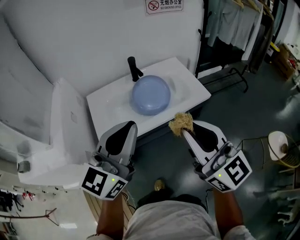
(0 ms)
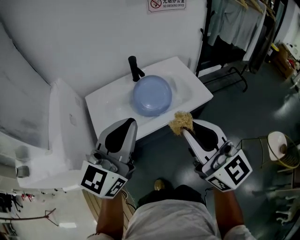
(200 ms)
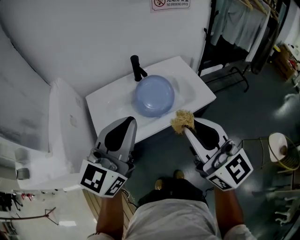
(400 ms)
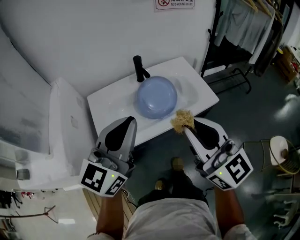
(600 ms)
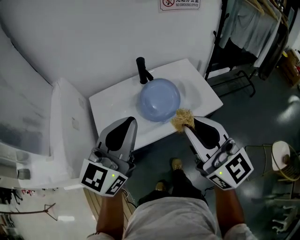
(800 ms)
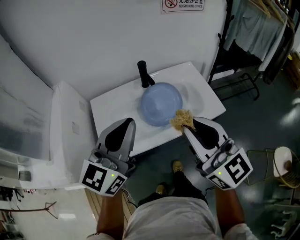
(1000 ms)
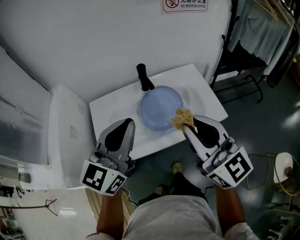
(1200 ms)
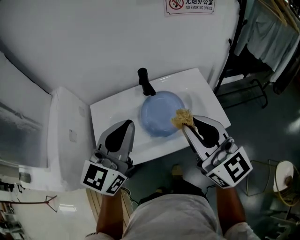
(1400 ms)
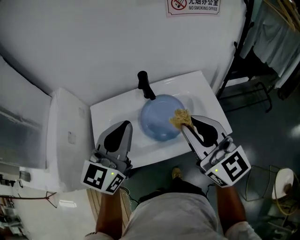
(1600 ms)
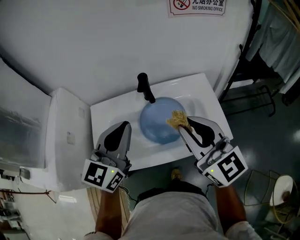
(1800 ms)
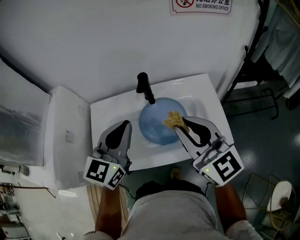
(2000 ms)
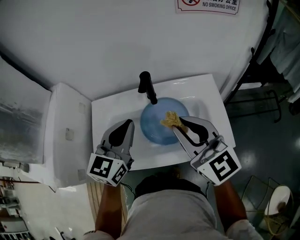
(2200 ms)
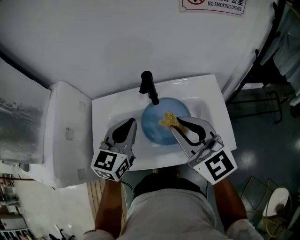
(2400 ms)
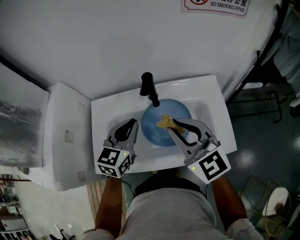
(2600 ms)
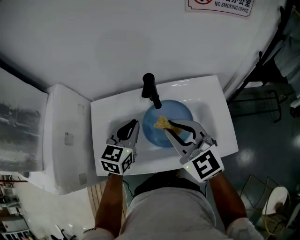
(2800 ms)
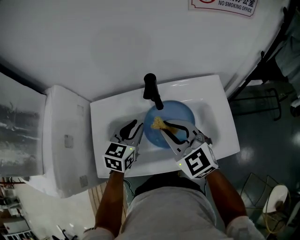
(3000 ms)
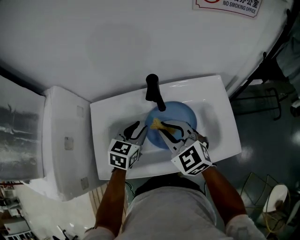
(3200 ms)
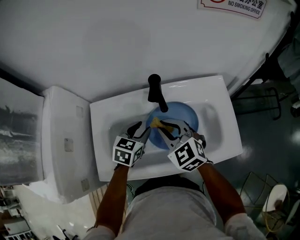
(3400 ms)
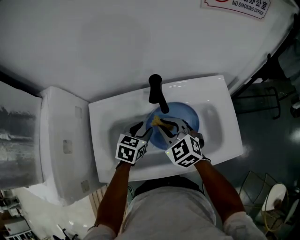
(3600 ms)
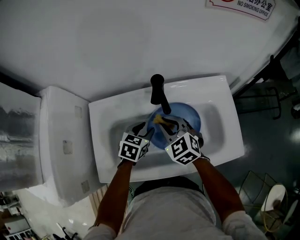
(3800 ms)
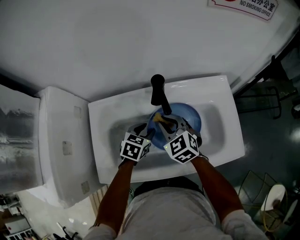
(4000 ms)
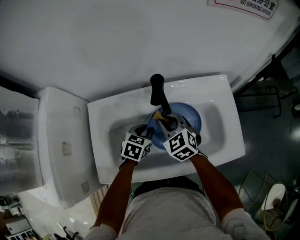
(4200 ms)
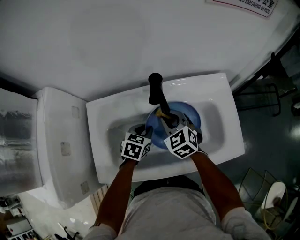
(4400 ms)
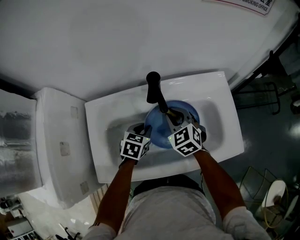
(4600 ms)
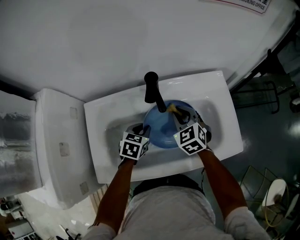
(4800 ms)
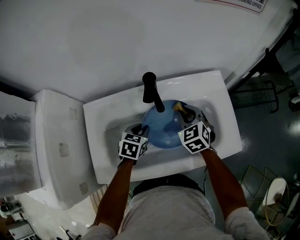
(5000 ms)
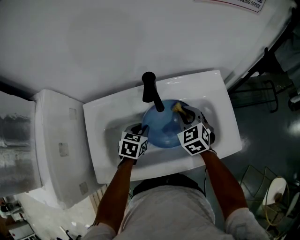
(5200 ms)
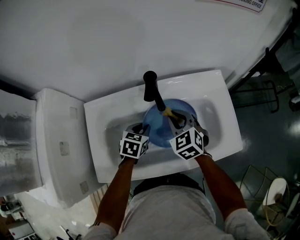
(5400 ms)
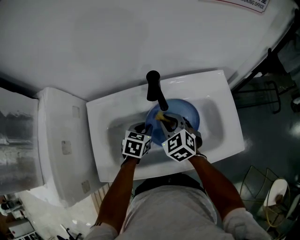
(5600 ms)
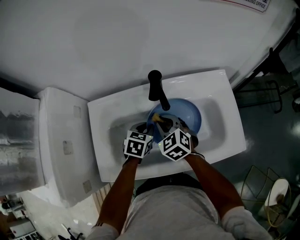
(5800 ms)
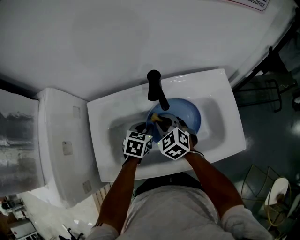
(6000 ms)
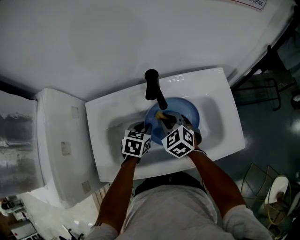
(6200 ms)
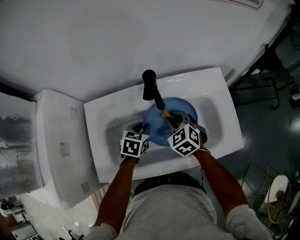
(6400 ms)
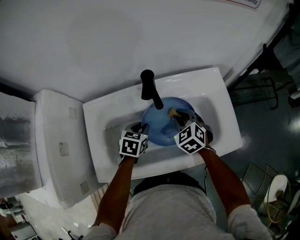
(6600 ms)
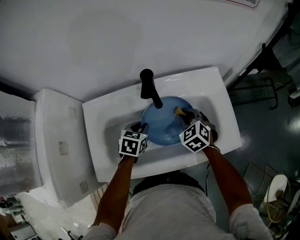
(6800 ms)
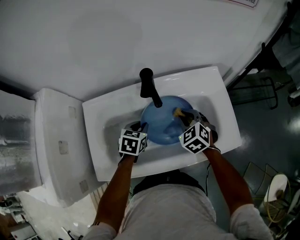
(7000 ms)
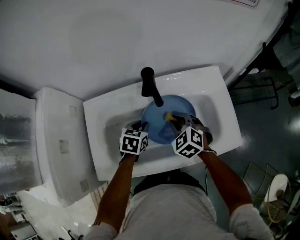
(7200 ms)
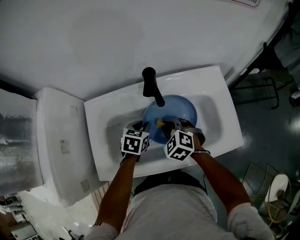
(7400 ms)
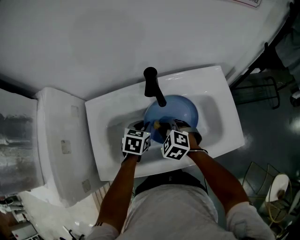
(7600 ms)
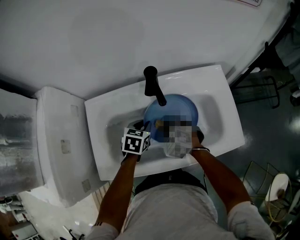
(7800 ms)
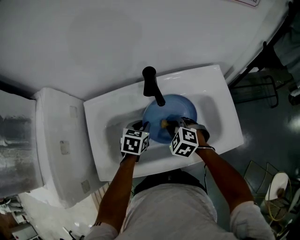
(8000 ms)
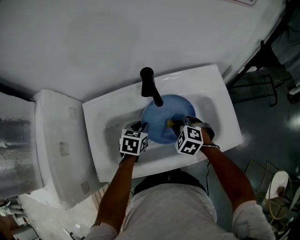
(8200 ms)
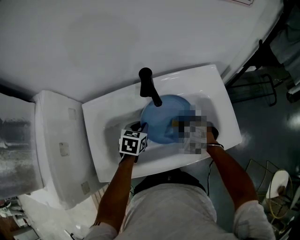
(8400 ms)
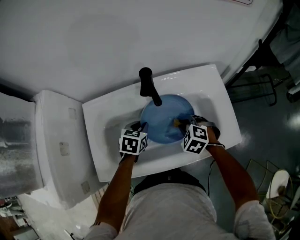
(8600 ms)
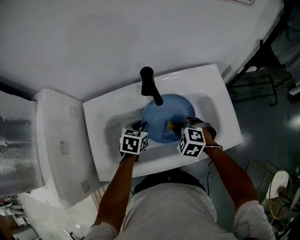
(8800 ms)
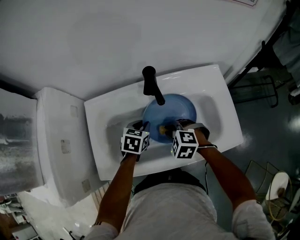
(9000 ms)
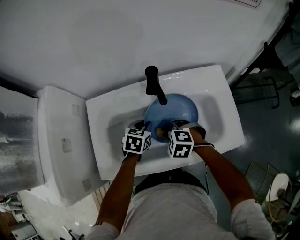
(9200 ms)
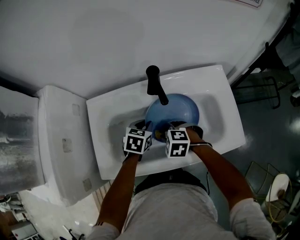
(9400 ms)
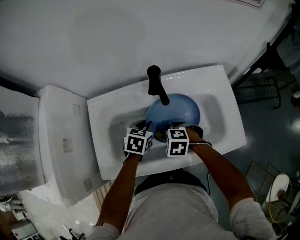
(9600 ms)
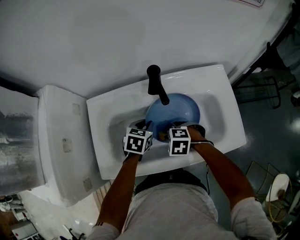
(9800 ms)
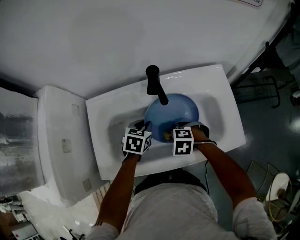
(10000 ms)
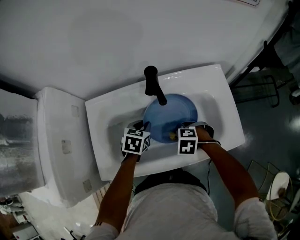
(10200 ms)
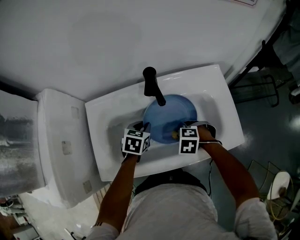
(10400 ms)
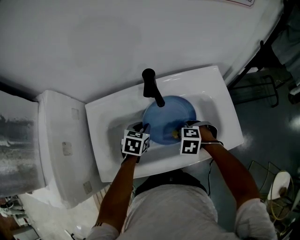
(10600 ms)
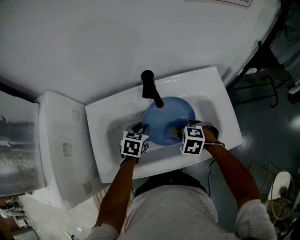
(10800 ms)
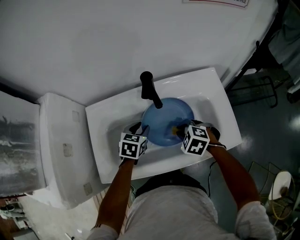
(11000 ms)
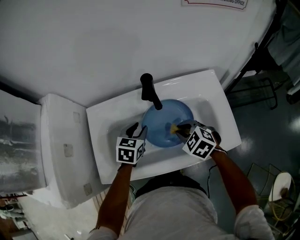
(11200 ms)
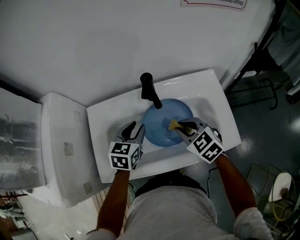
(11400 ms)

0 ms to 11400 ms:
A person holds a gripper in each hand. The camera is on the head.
0 ms to 1400 ms: The two grippers go roughly 20 cm forward.
1400 ms to 2800 ms: The left gripper travels downward and forward by about 20 cm, and swivels approximately 30 degrees. Meanwhile the right gripper is displaced forward and downward by approximately 15 cm, and changes its angle by roughly 20 degrees.
2800 ms to 4200 ms: The right gripper heads downward and forward, covering some 20 cm, and turns by about 20 degrees. The left gripper heads downward, covering roughly 15 cm, rotates some 30 degrees, and opens.
4200 ms to 5600 ms: The right gripper goes to the right and returns, roughly 10 cm each way.
5600 ms to 7200 ms: The right gripper heads to the right, covering roughly 5 cm.
7200 ms to 8600 ms: The right gripper reaches approximately 5 cm to the left, then returns.
8600 ms to 10000 ms: The right gripper heads to the left, covering some 10 cm, and swivels roughly 20 degrees.
10000 ms to 11400 ms: The grippers both shift upward by about 15 cm. The right gripper tips its fingers upward by about 30 degrees.

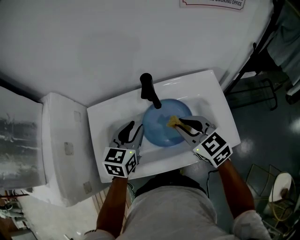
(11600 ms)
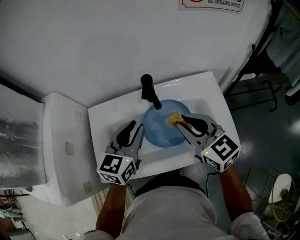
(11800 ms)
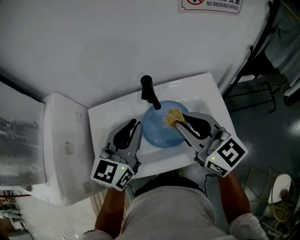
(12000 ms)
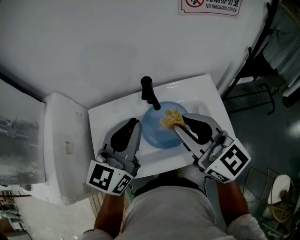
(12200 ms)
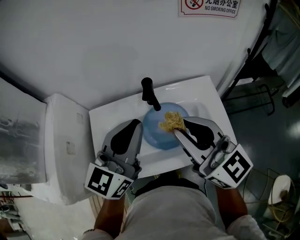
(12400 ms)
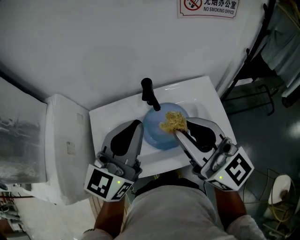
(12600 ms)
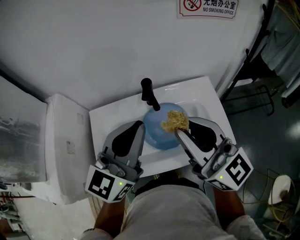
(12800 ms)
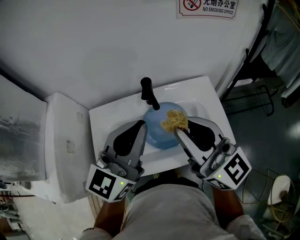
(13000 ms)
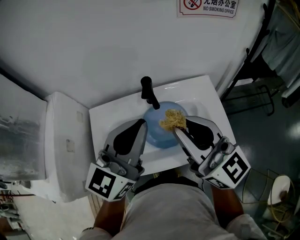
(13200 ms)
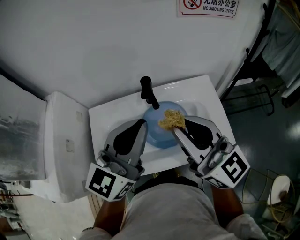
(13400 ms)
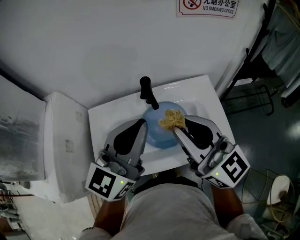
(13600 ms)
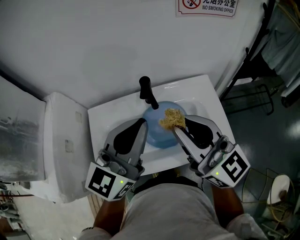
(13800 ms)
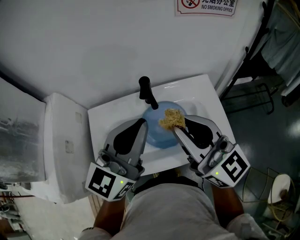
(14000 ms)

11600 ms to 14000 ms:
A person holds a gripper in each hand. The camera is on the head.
11600 ms to 12800 ms: The two grippers go about 20 cm upward. The left gripper tips its fingers upward by some 30 degrees, and closes up. The right gripper angles its fingers upward, by approximately 40 degrees.
12800 ms to 14000 ms: The grippers make only small movements.

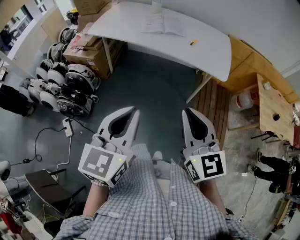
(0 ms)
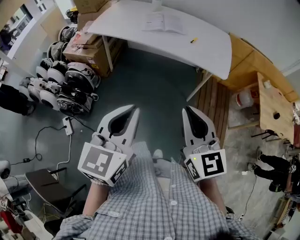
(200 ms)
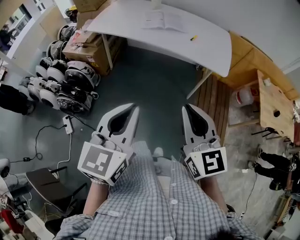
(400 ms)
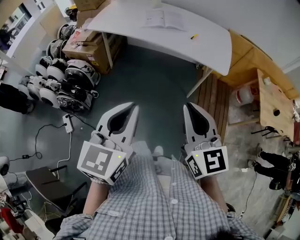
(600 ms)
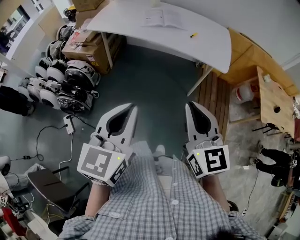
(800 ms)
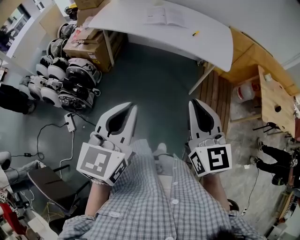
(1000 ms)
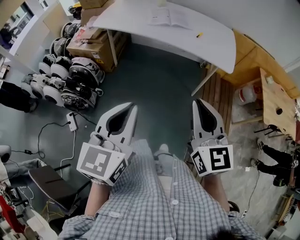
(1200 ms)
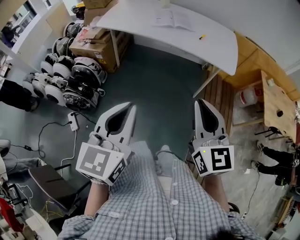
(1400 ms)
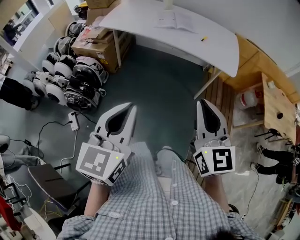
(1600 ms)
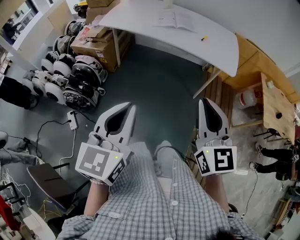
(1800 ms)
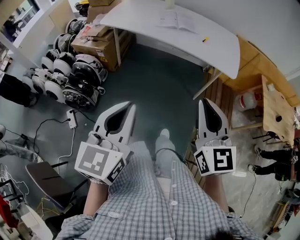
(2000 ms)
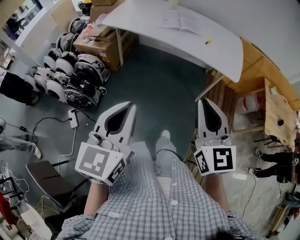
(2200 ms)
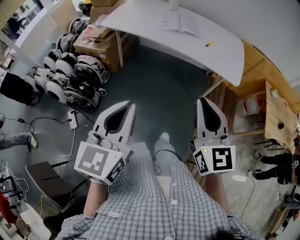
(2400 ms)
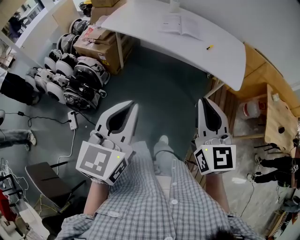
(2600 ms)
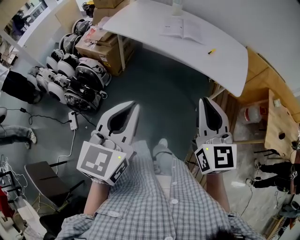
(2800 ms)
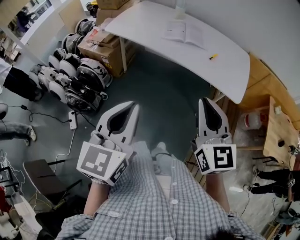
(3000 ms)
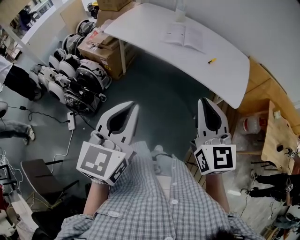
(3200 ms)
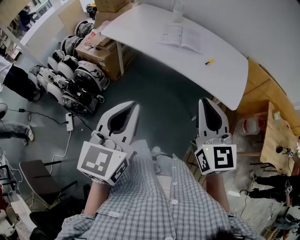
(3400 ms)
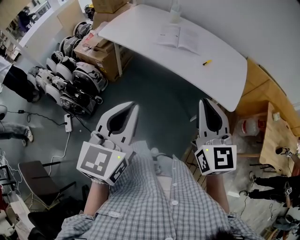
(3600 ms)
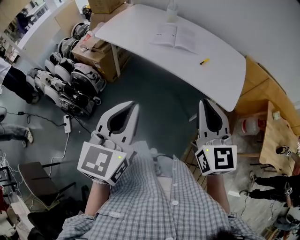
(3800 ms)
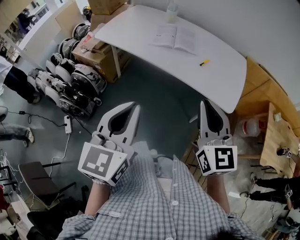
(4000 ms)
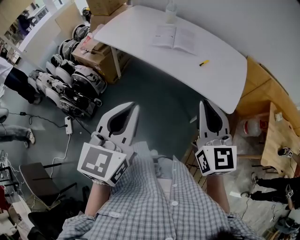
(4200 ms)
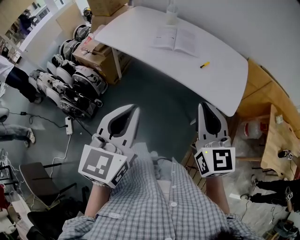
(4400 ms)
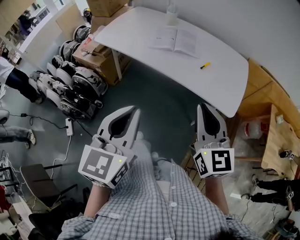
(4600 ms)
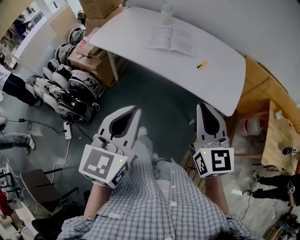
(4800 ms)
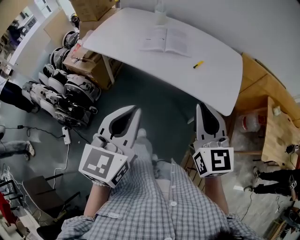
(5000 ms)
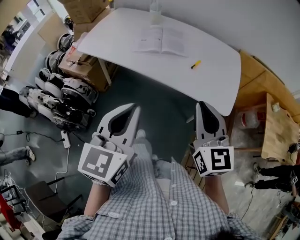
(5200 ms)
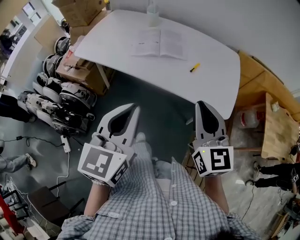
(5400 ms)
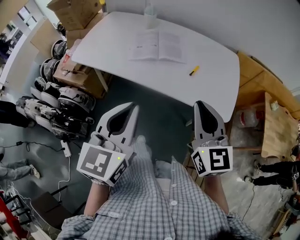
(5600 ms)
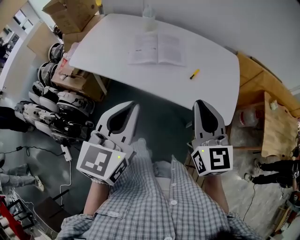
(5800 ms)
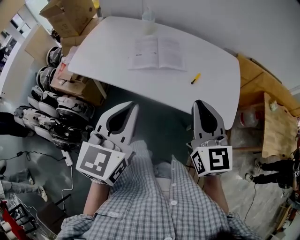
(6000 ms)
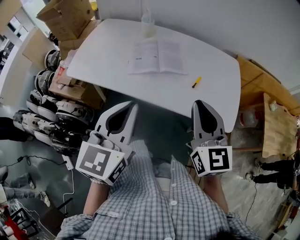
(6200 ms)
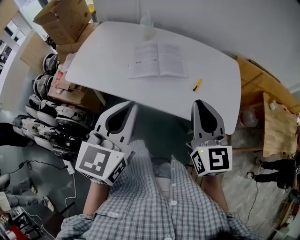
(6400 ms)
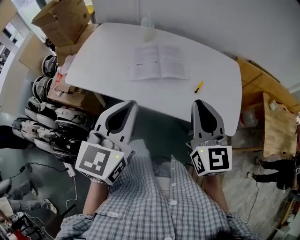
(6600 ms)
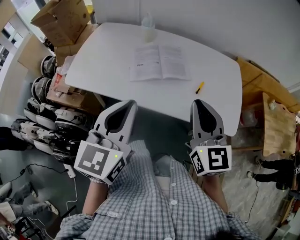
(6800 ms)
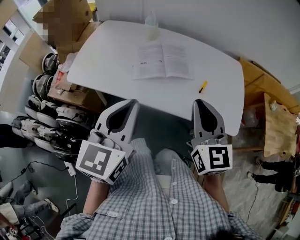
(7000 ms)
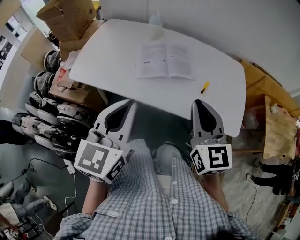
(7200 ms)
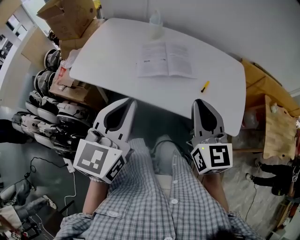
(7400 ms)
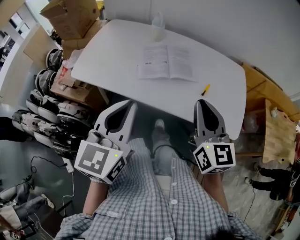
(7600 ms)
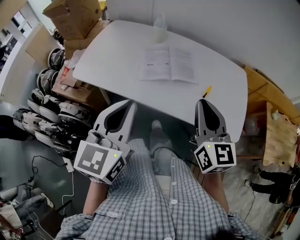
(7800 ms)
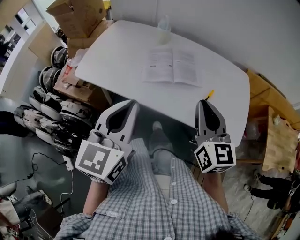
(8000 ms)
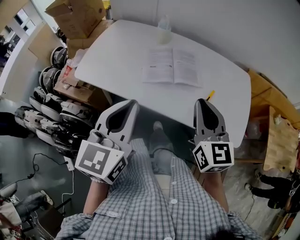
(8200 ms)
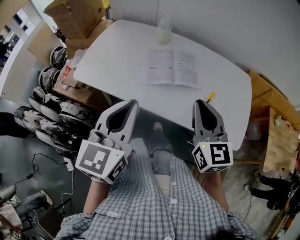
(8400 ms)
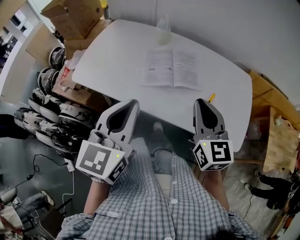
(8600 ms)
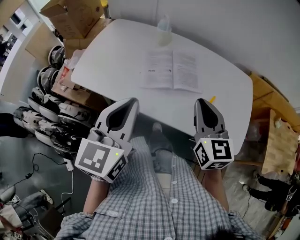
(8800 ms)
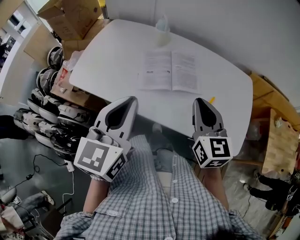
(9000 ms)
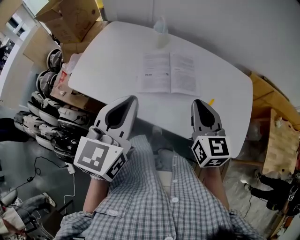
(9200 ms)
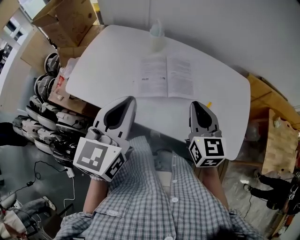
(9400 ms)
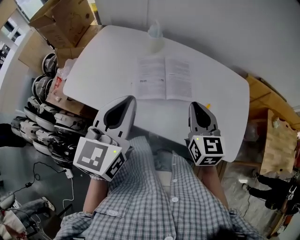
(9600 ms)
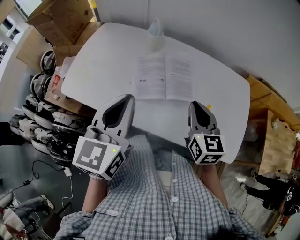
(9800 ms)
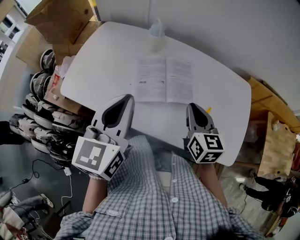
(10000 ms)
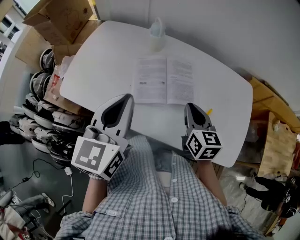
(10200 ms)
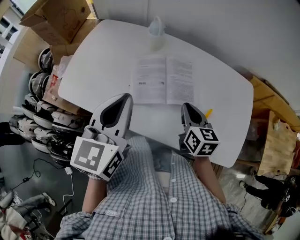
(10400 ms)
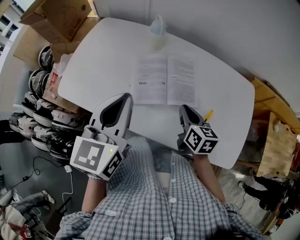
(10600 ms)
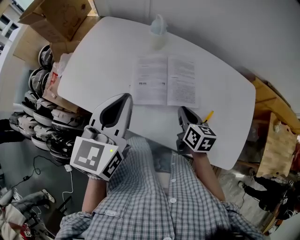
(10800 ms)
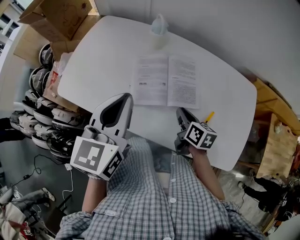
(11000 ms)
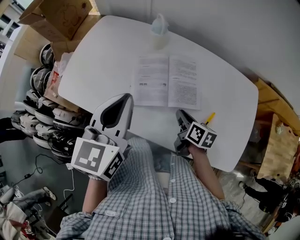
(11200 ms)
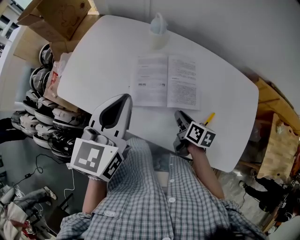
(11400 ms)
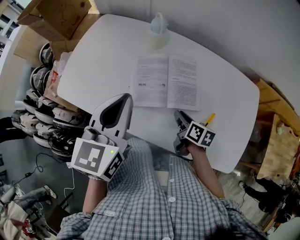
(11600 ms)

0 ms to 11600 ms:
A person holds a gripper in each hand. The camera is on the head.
0 ms to 1400 ms: The left gripper travels to the left by some 5 cm.
1400 ms to 2800 ms: The grippers both shift forward by about 10 cm.
2800 ms to 4400 ms: The left gripper shifts approximately 15 cm to the right and forward, while the right gripper heads forward and to the right, covering about 15 cm.
4400 ms to 5800 ms: Both grippers move forward, approximately 15 cm.
5800 ms to 7200 ms: Both grippers move to the left and forward, some 10 cm.
7200 ms to 8800 ms: The two grippers go approximately 10 cm forward.
8800 ms to 10200 ms: The right gripper travels forward and downward by approximately 15 cm, while the left gripper moves forward, approximately 10 cm.
10200 ms to 11600 ms: The left gripper ends up approximately 5 cm from where it was. Meanwhile the right gripper shifts some 15 cm downward, and turns by roughly 40 degrees.
